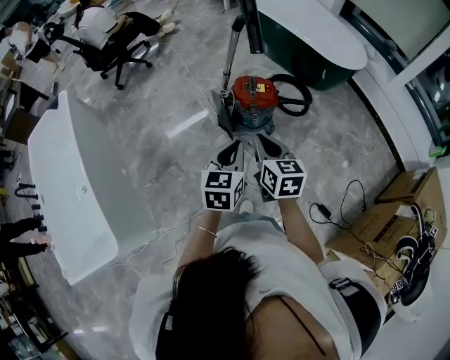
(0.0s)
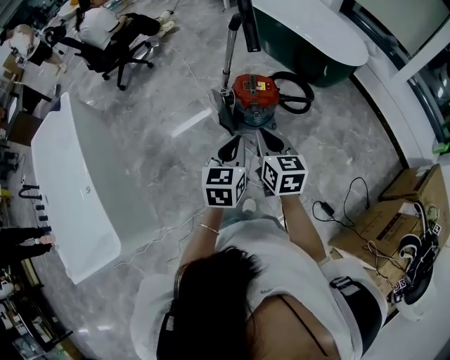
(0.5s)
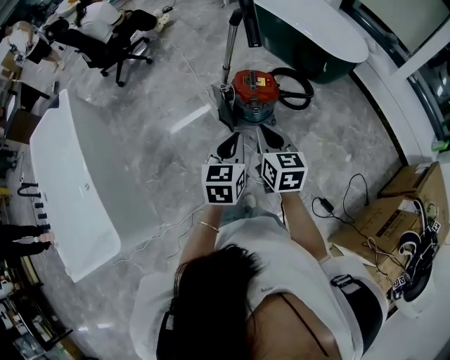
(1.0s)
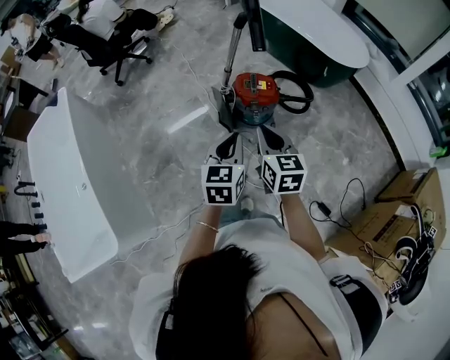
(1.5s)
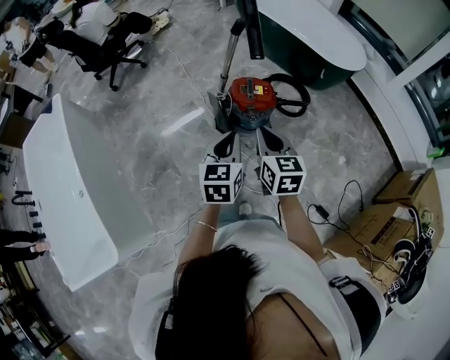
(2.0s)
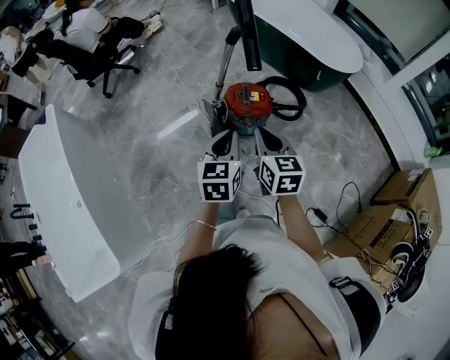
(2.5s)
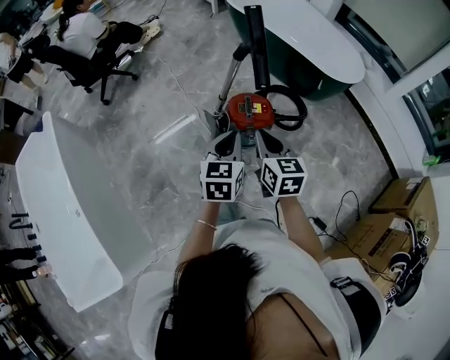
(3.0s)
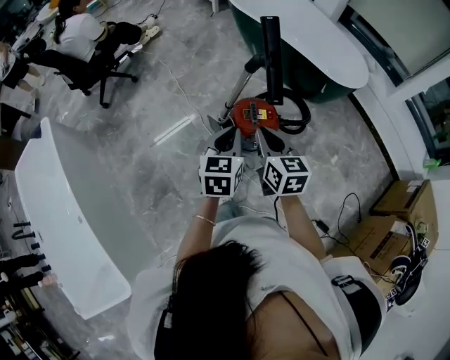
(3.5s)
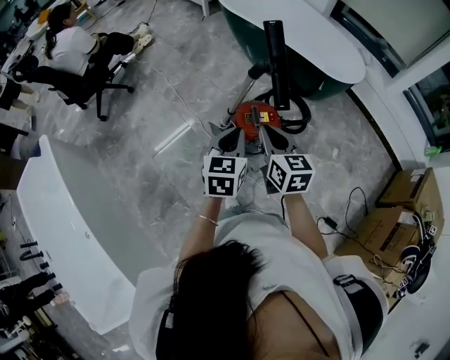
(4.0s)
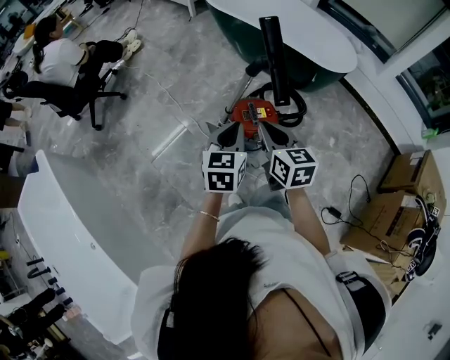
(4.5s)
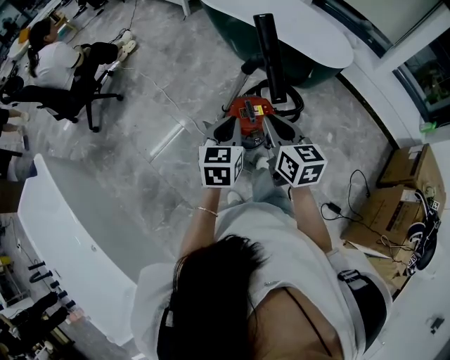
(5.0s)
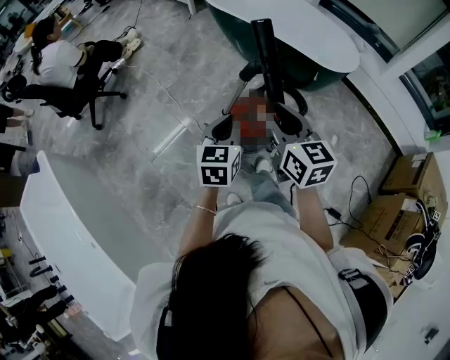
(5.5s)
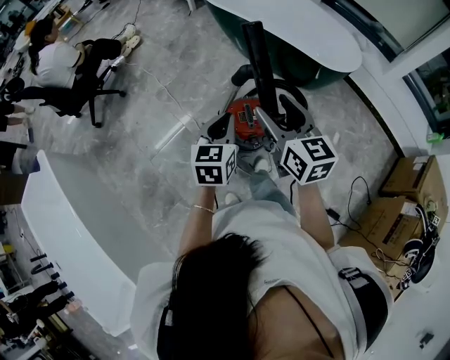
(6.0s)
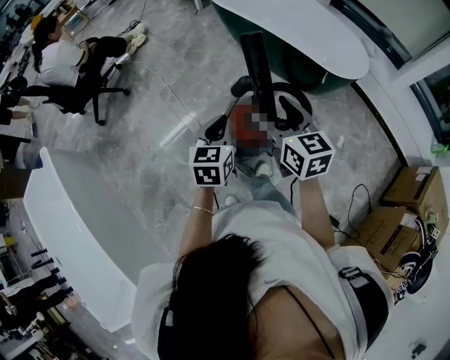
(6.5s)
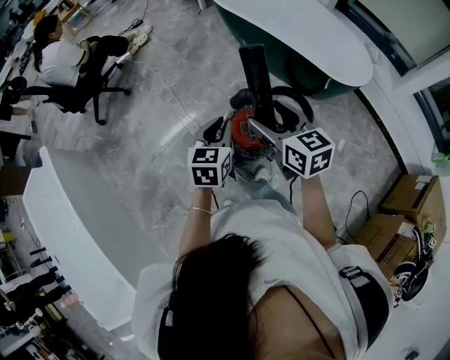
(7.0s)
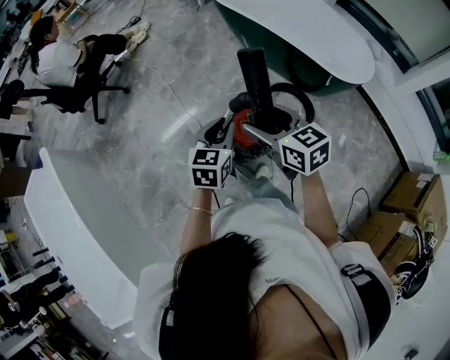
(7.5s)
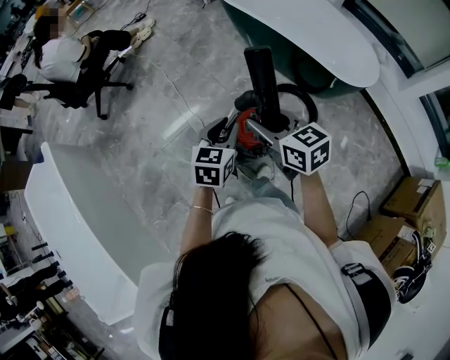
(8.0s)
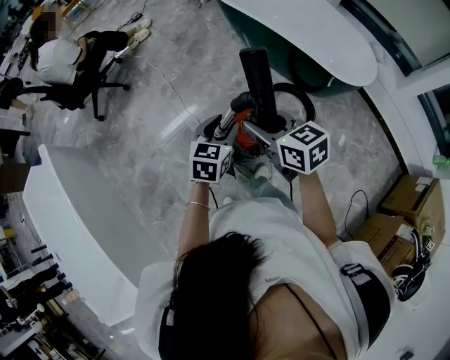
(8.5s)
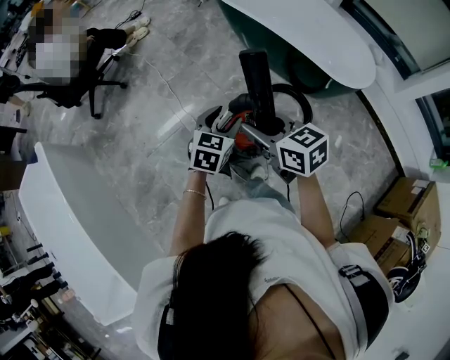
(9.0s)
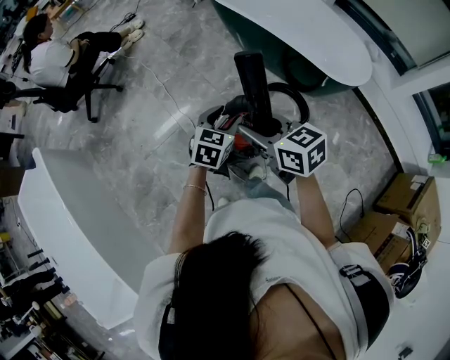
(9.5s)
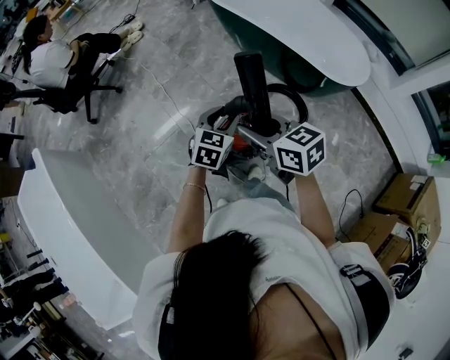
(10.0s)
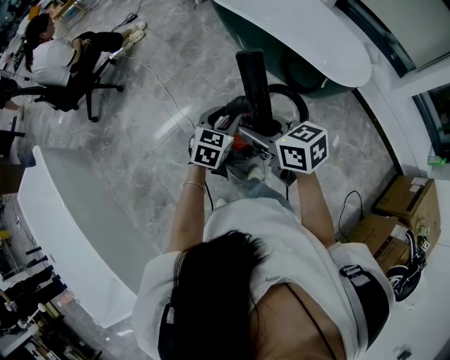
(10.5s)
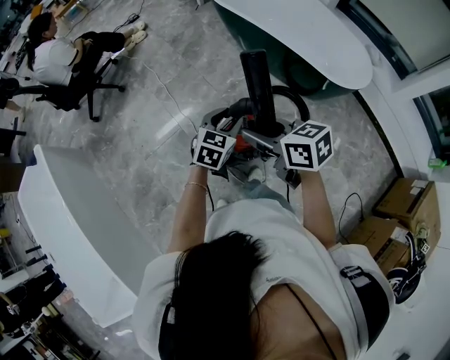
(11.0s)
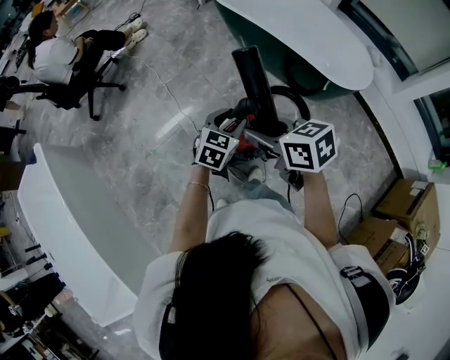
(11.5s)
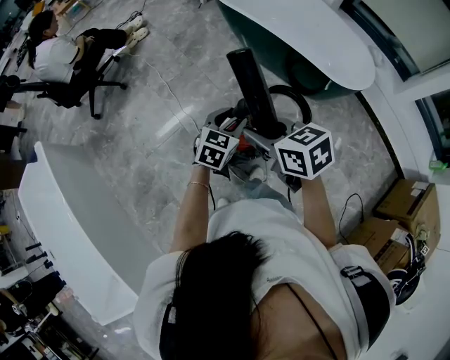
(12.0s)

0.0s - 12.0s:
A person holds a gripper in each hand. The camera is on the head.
0.0s - 2.0s: Both grippers move forward, approximately 5 cm.
2.0s - 4.0s: The grippers both shift forward by approximately 20 cm.
4.0s - 6.0s: The left gripper goes roughly 10 cm forward, while the right gripper goes some 10 cm upward and forward, and opens its fingers.
6.0s - 8.0s: The right gripper is displaced forward and downward by some 10 cm, swivels about 30 degrees, and closes up; the left gripper travels forward by approximately 5 cm.
8.0s - 10.0s: The left gripper shifts by some 5 cm, and opens.
10.0s - 12.0s: The grippers make only small movements.

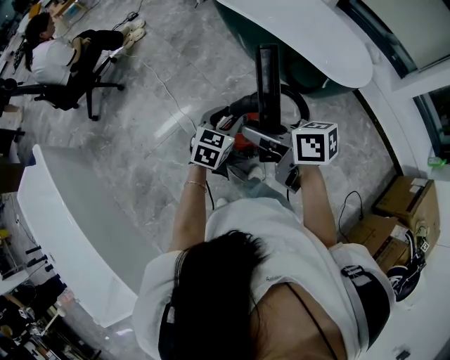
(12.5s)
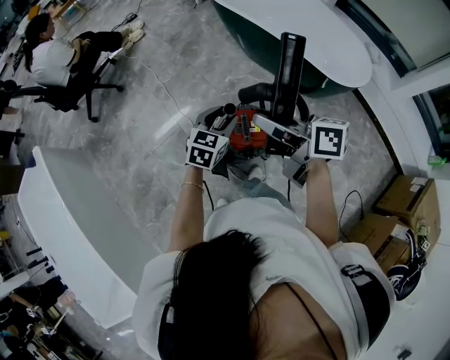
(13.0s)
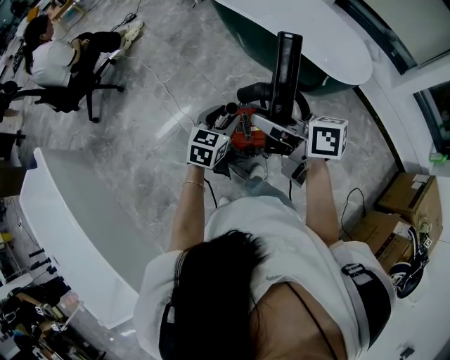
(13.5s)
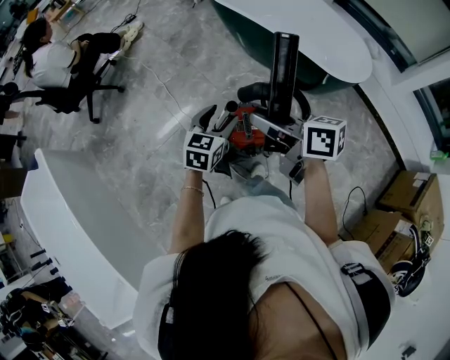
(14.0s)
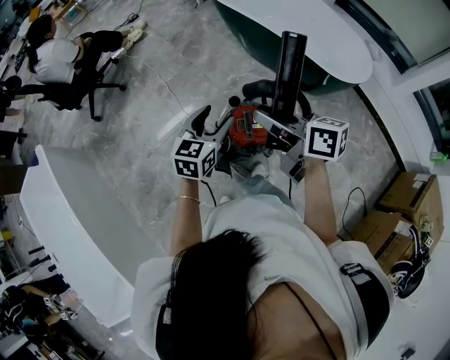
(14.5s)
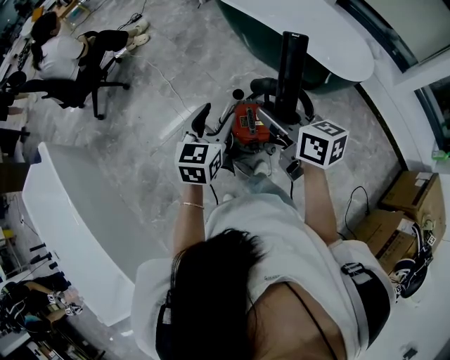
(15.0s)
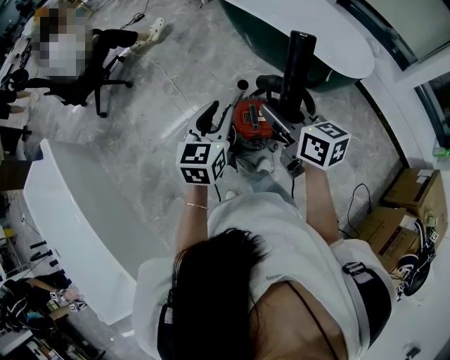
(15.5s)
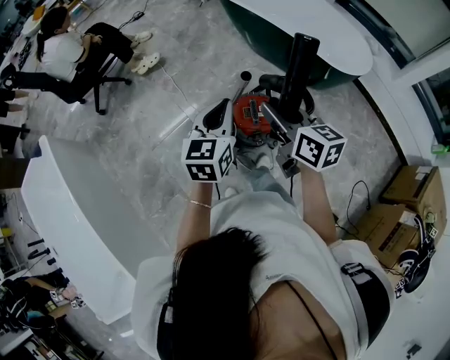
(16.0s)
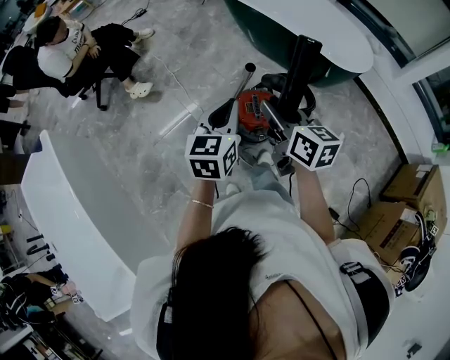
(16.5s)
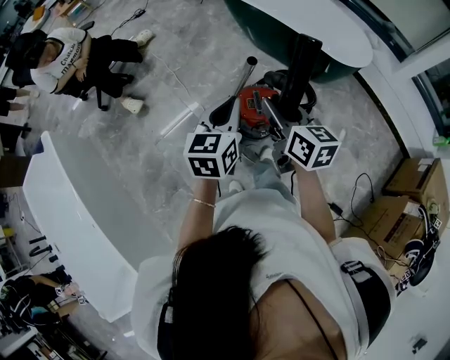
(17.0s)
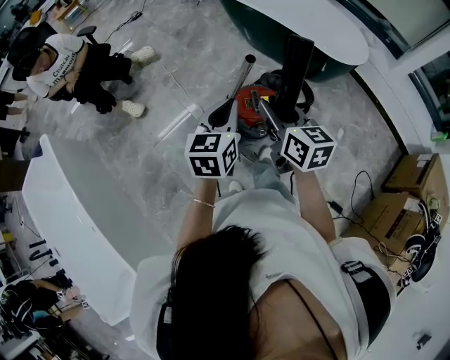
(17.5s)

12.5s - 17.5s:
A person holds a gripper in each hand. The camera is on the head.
12.5s - 15.0s: The left gripper goes roughly 10 cm upward and to the left; the right gripper swivels roughly 20 degrees.
15.0s - 17.5s: The grippers both shift backward by some 10 cm. The left gripper closes its fingers.

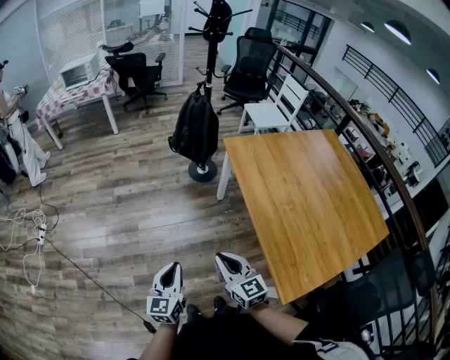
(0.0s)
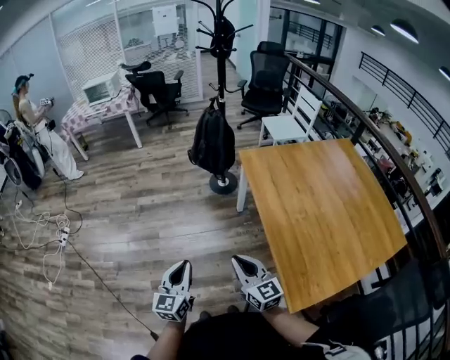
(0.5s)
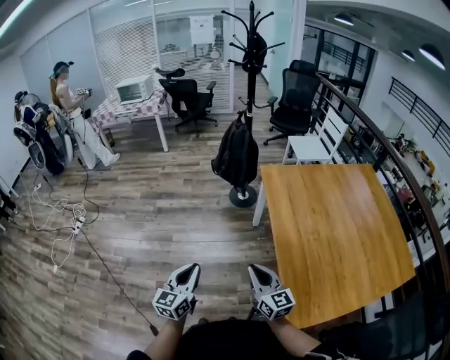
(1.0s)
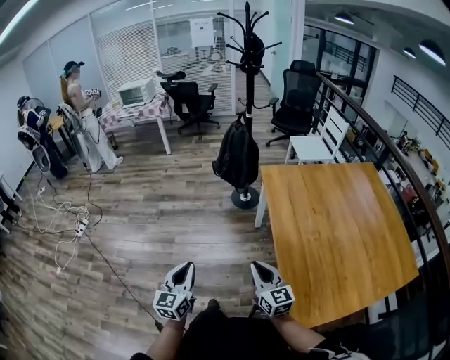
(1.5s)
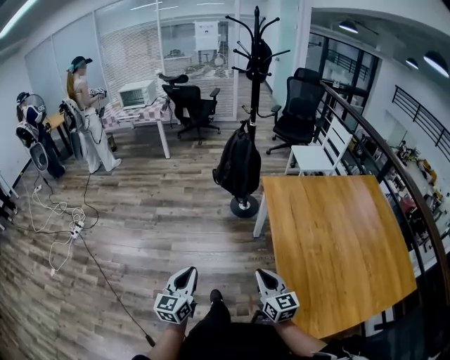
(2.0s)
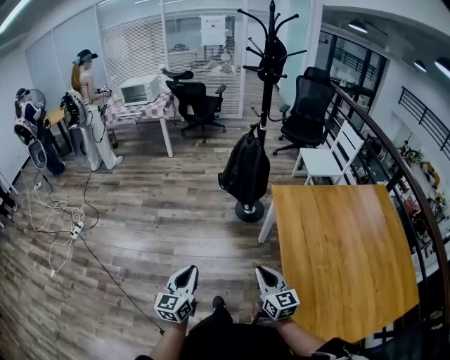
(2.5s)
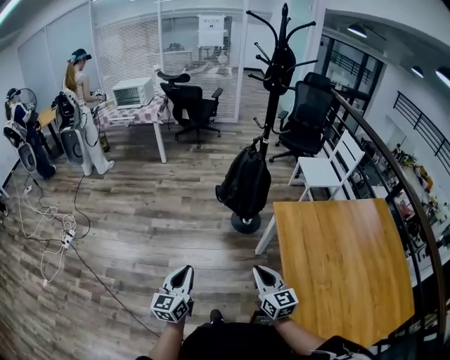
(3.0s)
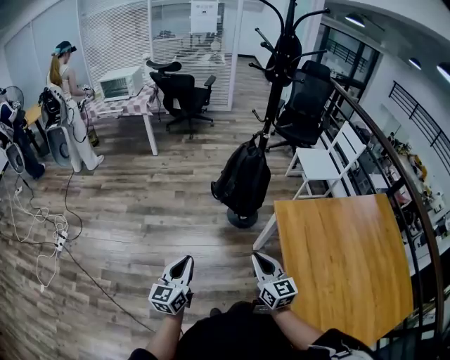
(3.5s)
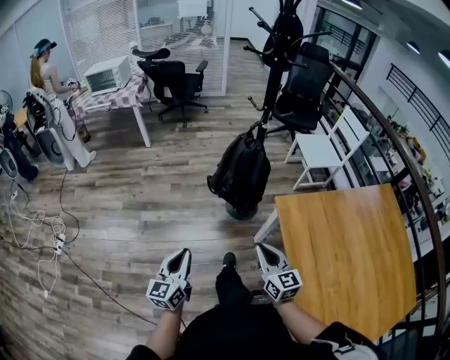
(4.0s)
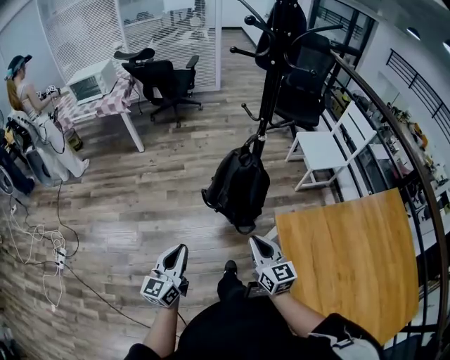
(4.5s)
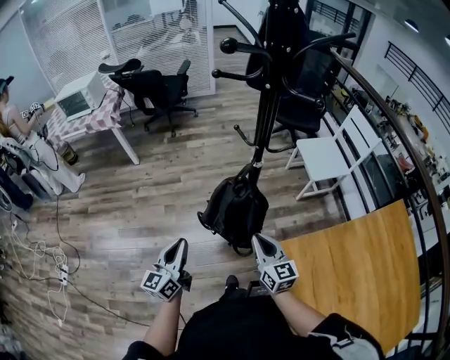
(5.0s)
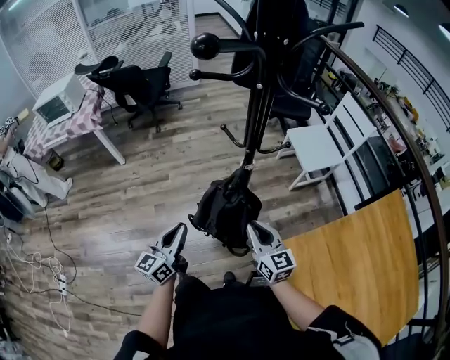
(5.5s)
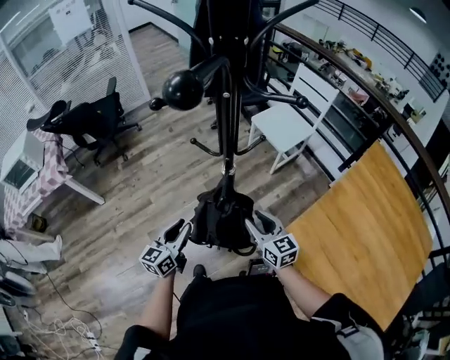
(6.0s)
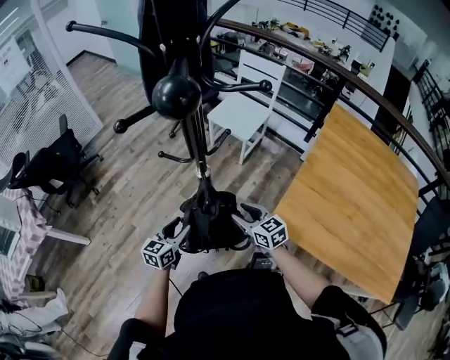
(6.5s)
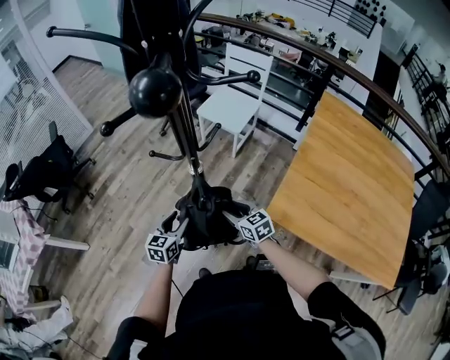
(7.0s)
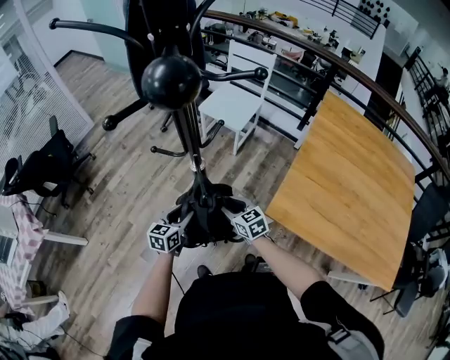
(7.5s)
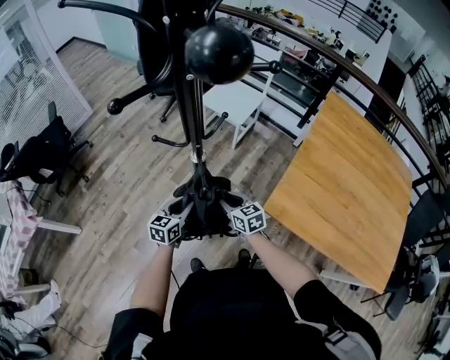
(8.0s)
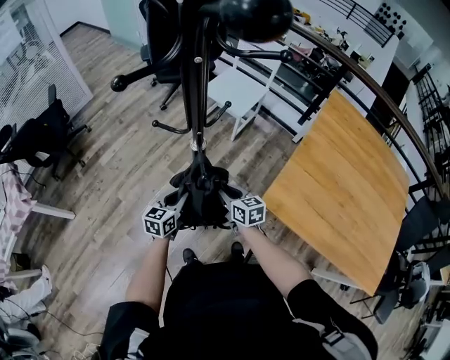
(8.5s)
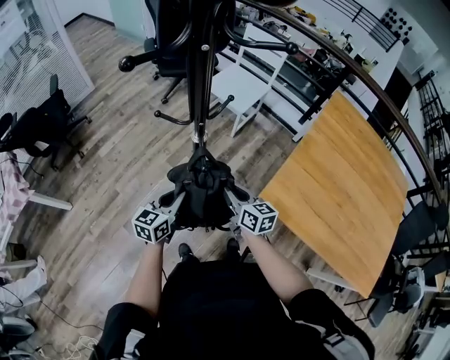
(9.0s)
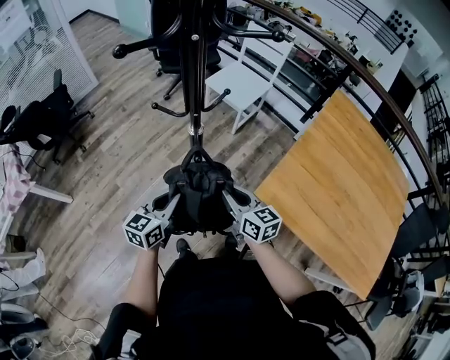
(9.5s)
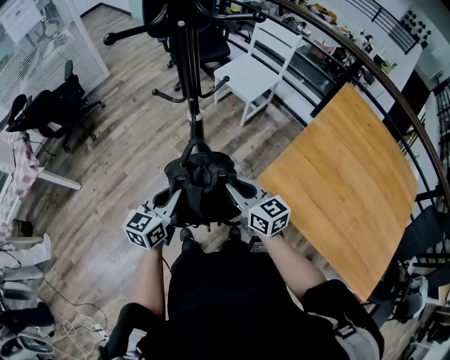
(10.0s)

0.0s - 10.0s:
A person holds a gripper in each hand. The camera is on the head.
0.0s - 2.0s: The left gripper changes place by about 5 cm. Meanwhile the right gripper heads to the right, covering roughly 10 cm.
2.0s - 4.0s: The two grippers go some 35 cm forward.
4.0s - 6.0s: The left gripper shifts by about 50 cm, and swivels approximately 40 degrees, while the right gripper shifts by some 40 cm, and opens.
6.0s - 8.0s: The right gripper goes roughly 10 cm downward, and turns by approximately 20 degrees. Meanwhile the left gripper shifts some 15 cm forward, downward and to the right, and turns by some 30 degrees.
8.0s - 10.0s: Both grippers move upward and backward, about 20 cm.
